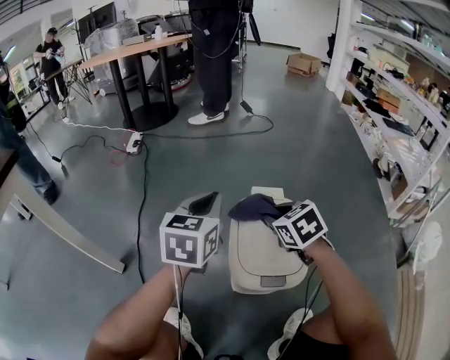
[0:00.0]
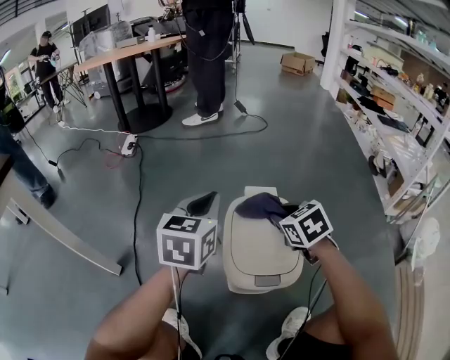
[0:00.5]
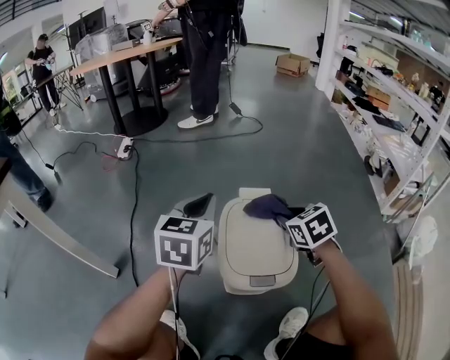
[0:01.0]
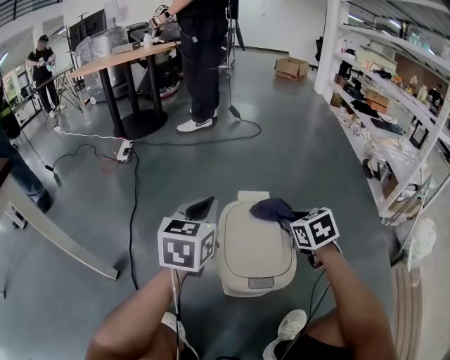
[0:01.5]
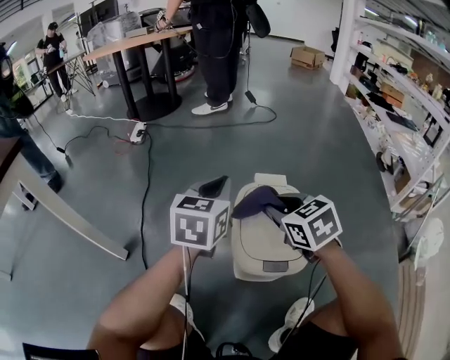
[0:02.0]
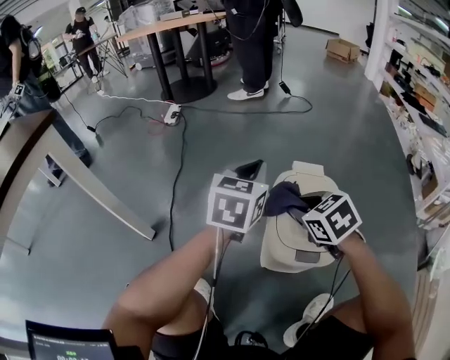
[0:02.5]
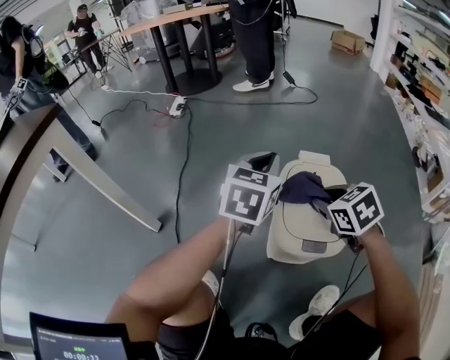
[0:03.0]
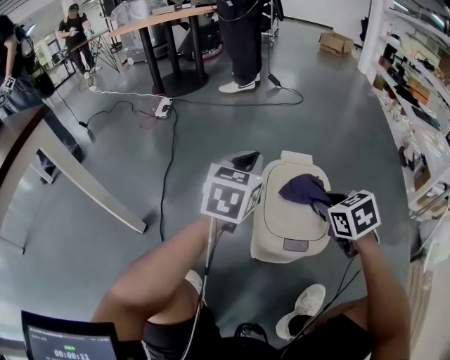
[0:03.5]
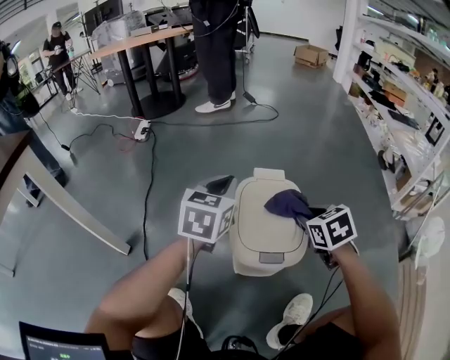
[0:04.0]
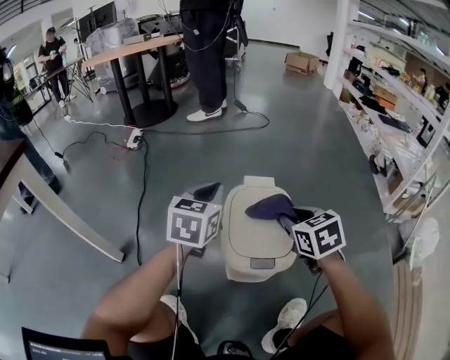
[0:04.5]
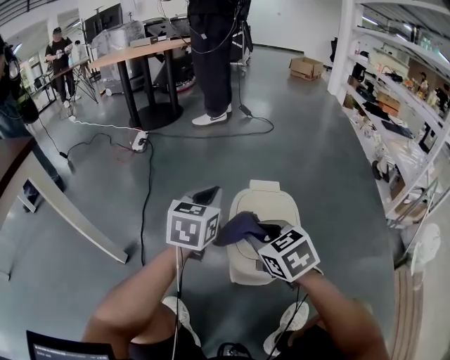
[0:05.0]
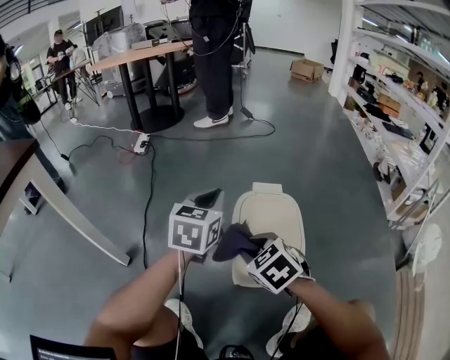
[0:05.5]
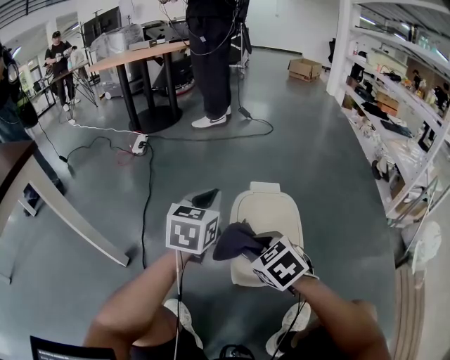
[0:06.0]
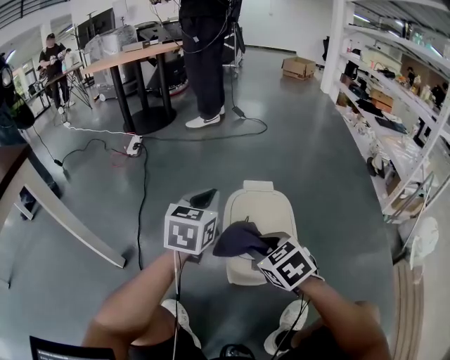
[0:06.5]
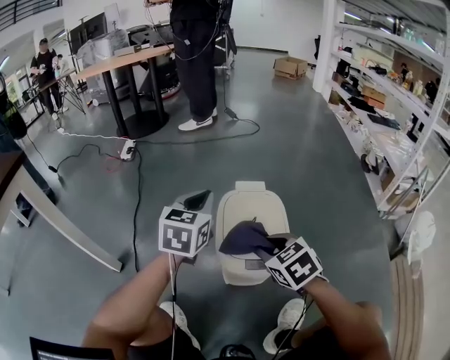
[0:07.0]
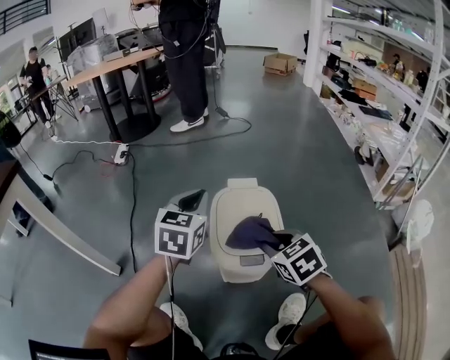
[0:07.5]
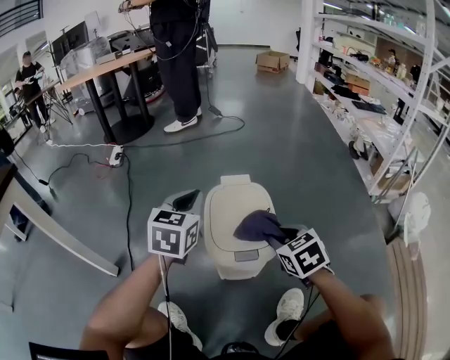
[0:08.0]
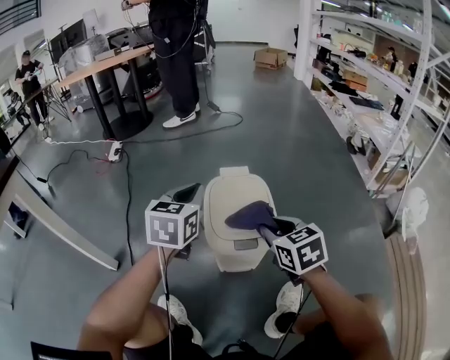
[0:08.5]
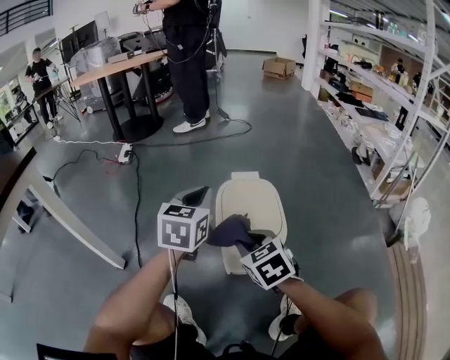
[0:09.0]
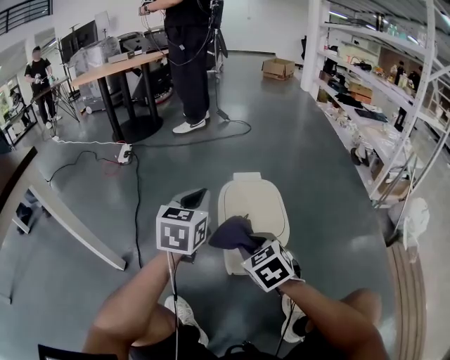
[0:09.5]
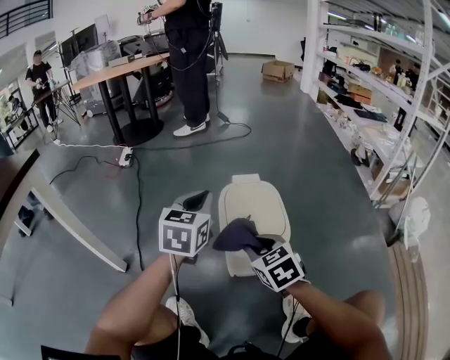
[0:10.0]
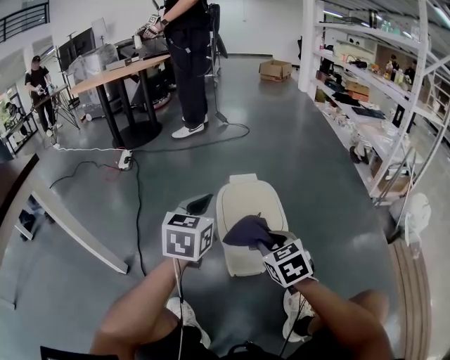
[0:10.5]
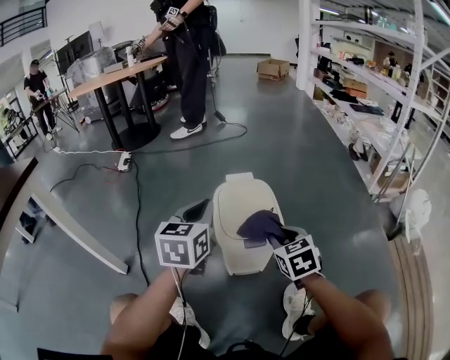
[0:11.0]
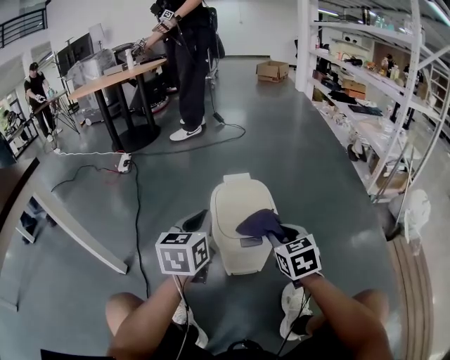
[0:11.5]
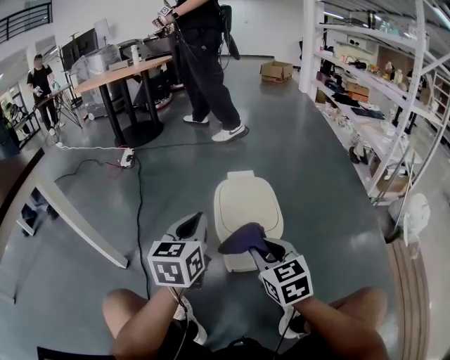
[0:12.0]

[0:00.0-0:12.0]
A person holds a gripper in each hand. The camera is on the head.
0.0 to 2.0 s: The right gripper goes to the right and returns, approximately 10 cm each way.
2.0 to 4.0 s: The right gripper goes roughly 10 cm to the right.
4.0 to 6.0 s: The right gripper heads to the left, covering about 15 cm, and swivels approximately 20 degrees.
6.0 to 8.0 s: The right gripper shifts about 15 cm to the right, and changes its angle by roughly 20 degrees.
8.0 to 10.0 s: The right gripper shifts some 10 cm to the left and backward. Meanwhile the left gripper ends up approximately 5 cm from where it was.
10.0 to 12.0 s: The left gripper heads backward, covering some 10 cm. The right gripper moves backward, roughly 5 cm, and goes to the right and returns, about 10 cm each way.

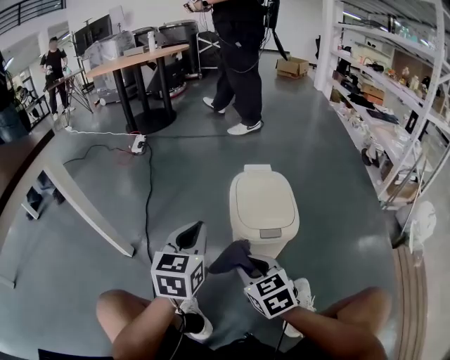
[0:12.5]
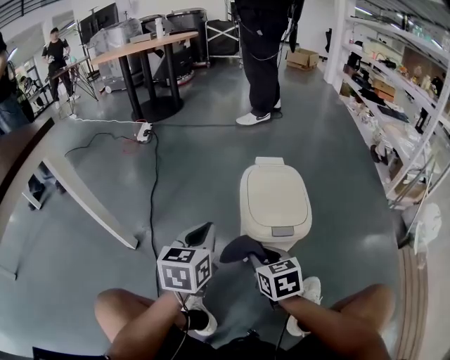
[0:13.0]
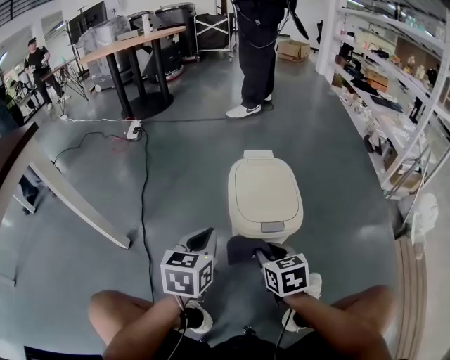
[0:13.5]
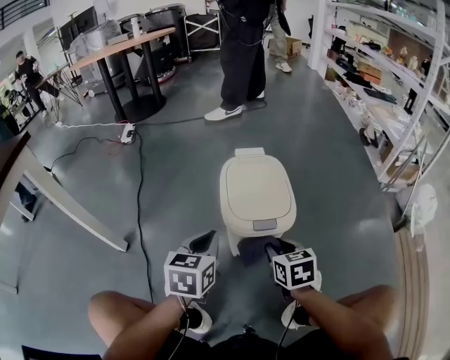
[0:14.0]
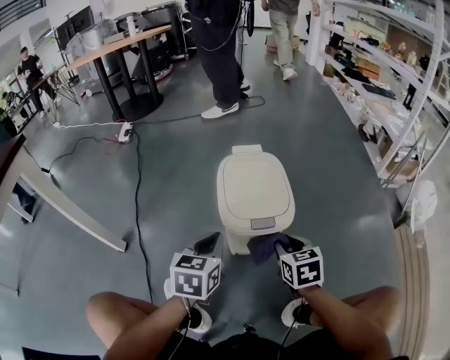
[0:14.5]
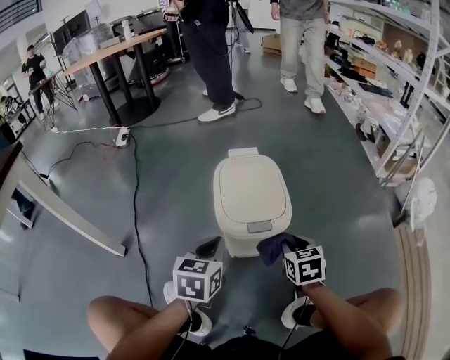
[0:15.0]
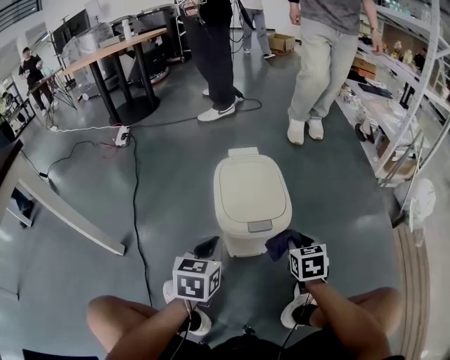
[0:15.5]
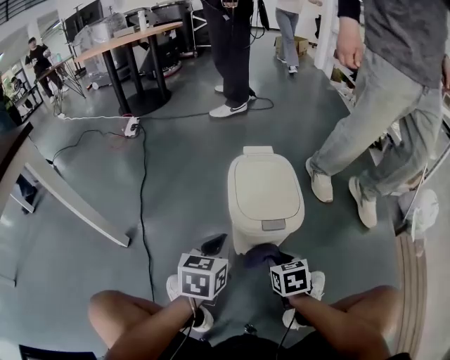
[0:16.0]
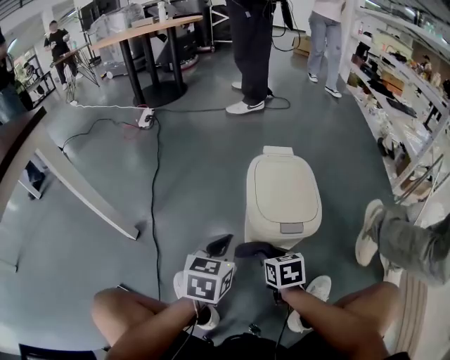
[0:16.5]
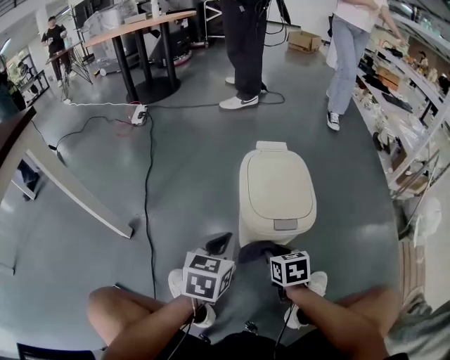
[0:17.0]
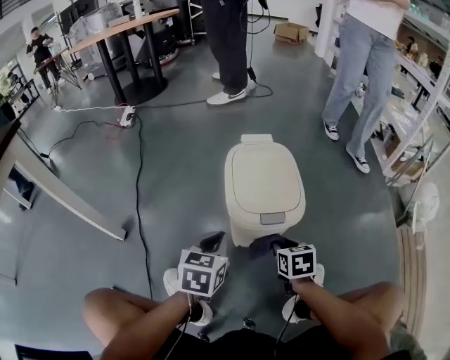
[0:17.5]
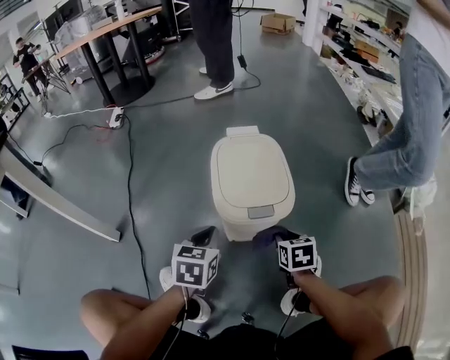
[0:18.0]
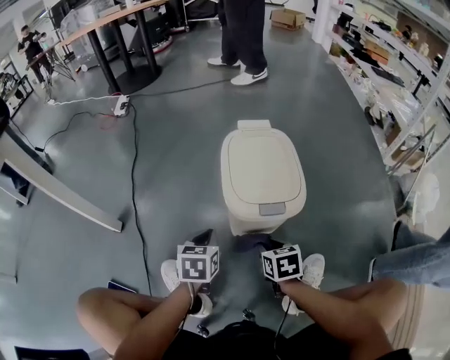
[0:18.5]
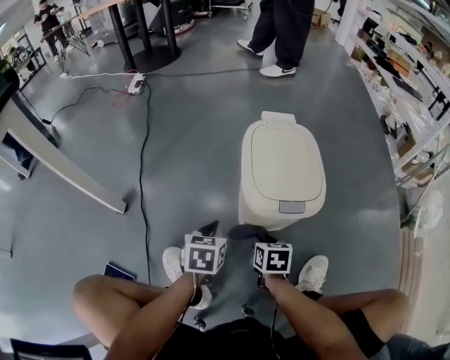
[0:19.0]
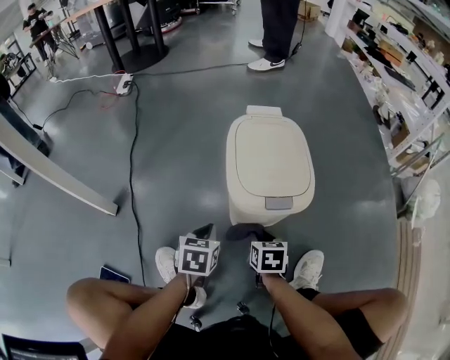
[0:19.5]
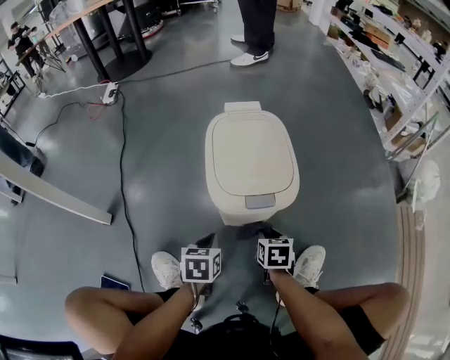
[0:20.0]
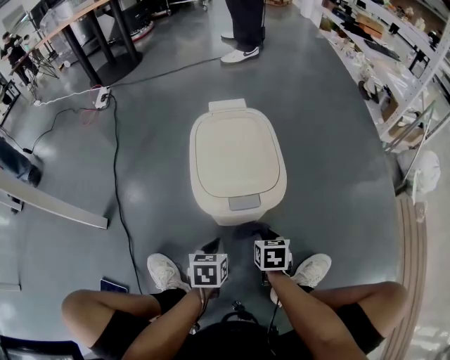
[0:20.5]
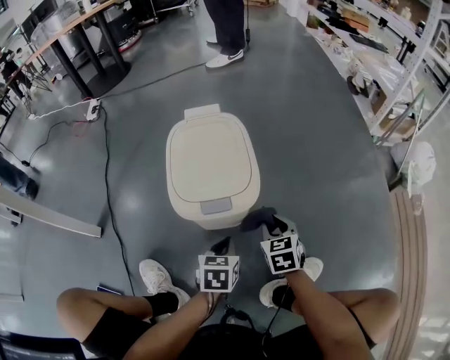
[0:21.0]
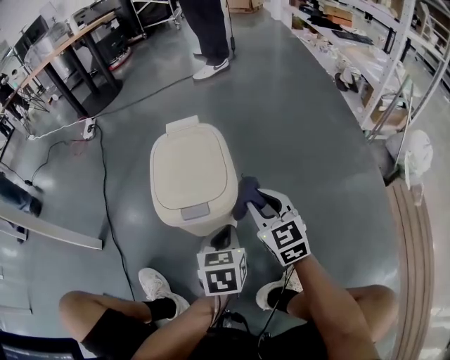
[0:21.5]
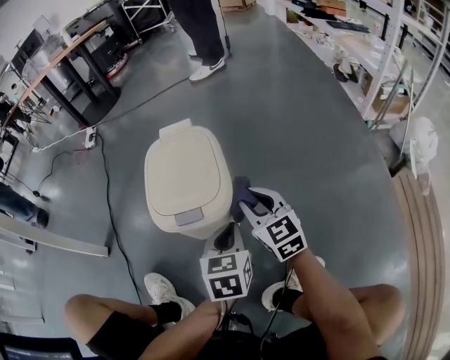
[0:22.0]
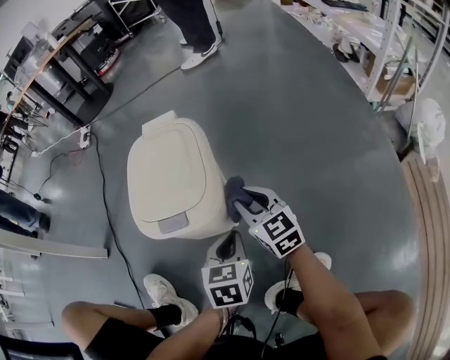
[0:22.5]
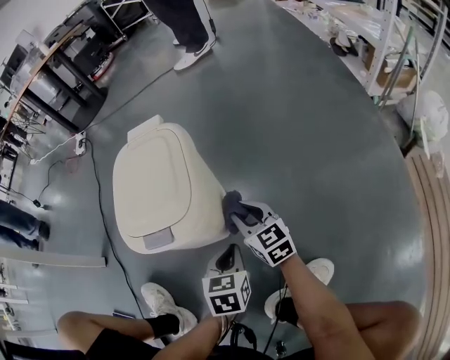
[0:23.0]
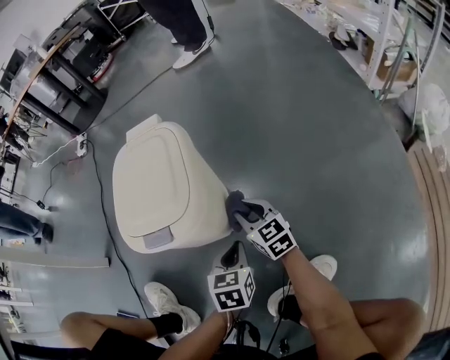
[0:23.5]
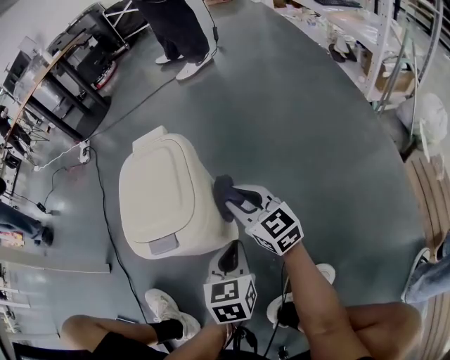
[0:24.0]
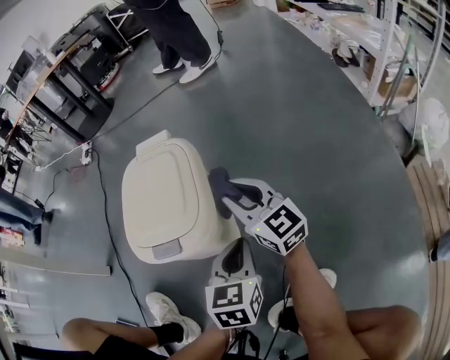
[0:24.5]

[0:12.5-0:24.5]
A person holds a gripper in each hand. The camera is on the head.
12.5 to 14.5 s: The right gripper is displaced to the right and downward by approximately 15 cm, and swivels about 20 degrees. Meanwhile the left gripper goes about 15 cm downward and to the right.
14.5 to 16.5 s: The right gripper moves to the left and downward, roughly 15 cm.
16.5 to 18.5 s: The right gripper moves to the right, approximately 5 cm; the left gripper travels downward by roughly 10 cm.
18.5 to 20.5 s: The grippers both shift downward and to the right by some 10 cm.
20.5 to 22.5 s: The right gripper travels upward, forward and to the right by approximately 15 cm, and angles its fingers upward, by approximately 40 degrees, while the left gripper is displaced to the right by approximately 15 cm.
22.5 to 24.5 s: The right gripper heads upward, covering about 5 cm, while the left gripper goes downward and returns, some 10 cm each way.

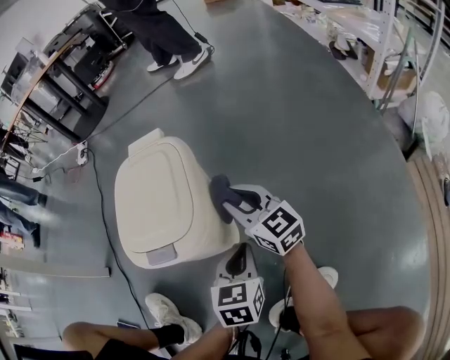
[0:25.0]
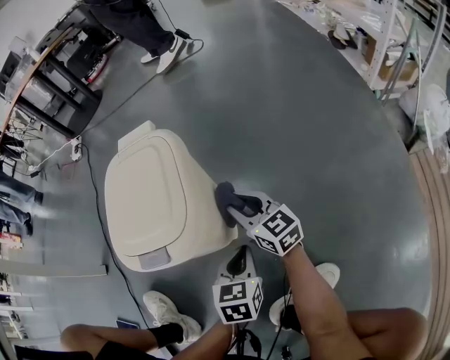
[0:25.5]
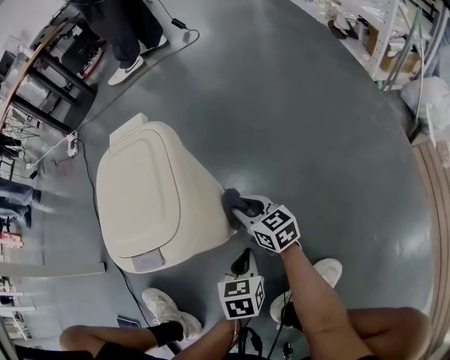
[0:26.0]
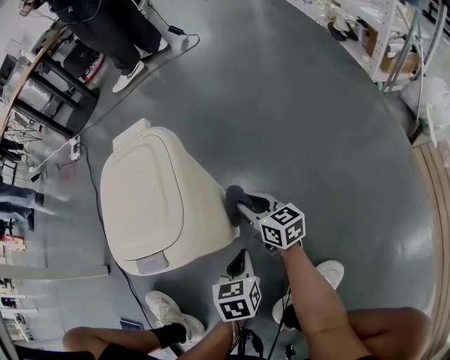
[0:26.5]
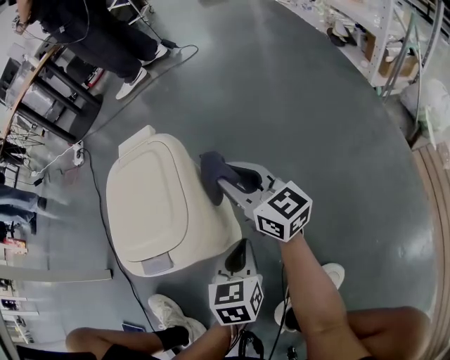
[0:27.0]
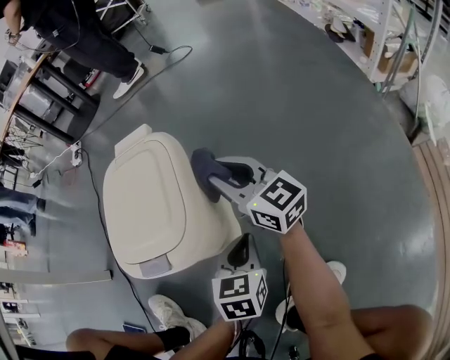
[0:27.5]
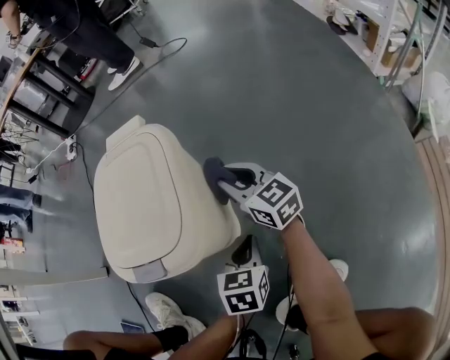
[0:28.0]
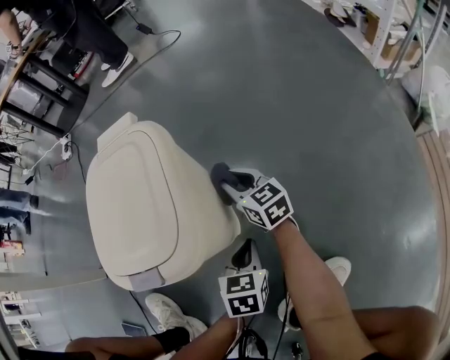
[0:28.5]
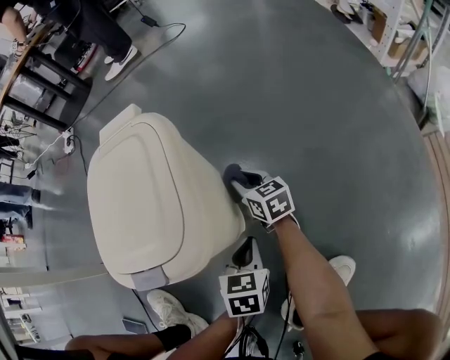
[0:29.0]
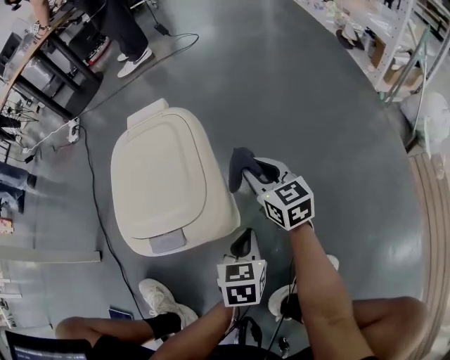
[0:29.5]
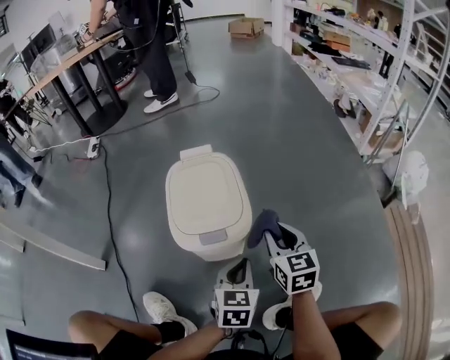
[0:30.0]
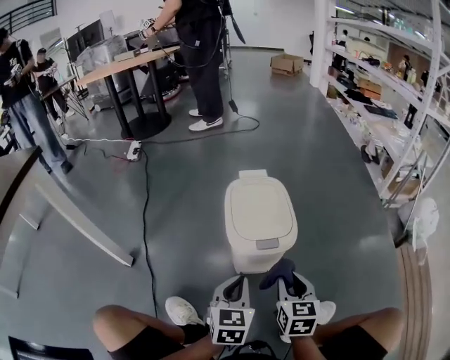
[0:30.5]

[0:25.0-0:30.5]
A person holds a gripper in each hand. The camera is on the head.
25.0 to 27.0 s: The left gripper reaches some 10 cm downward, then returns. The right gripper goes downward and returns, some 15 cm each way.
27.0 to 28.5 s: The right gripper travels downward by some 20 cm, and swivels approximately 20 degrees, while the left gripper goes roughly 10 cm downward.
28.5 to 30.5 s: The left gripper shifts roughly 35 cm upward, to the left and backward, and rotates about 20 degrees. Meanwhile the right gripper heads backward and upward, covering some 35 cm, and swivels about 30 degrees.
